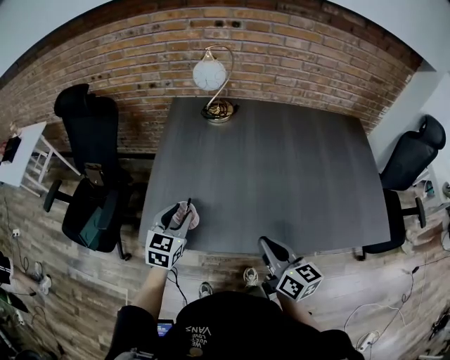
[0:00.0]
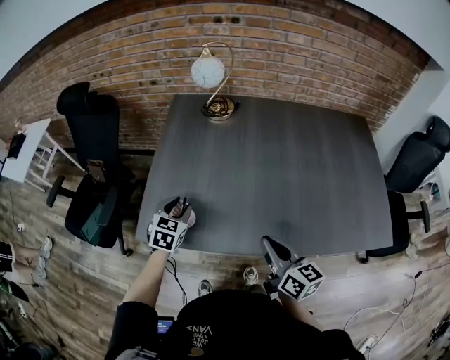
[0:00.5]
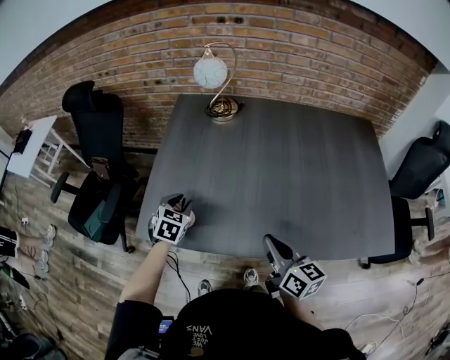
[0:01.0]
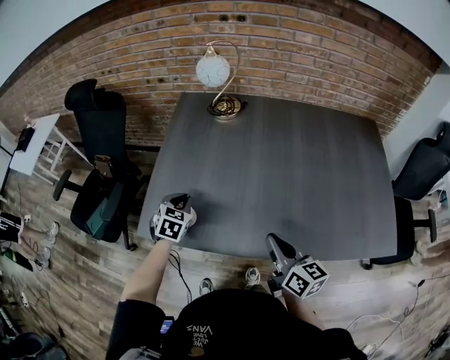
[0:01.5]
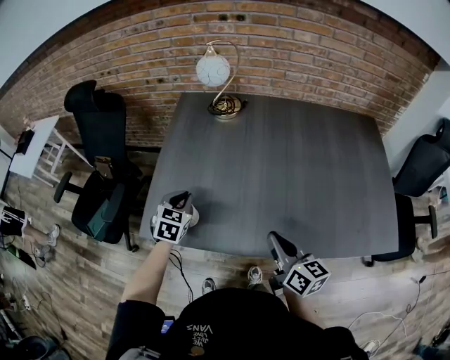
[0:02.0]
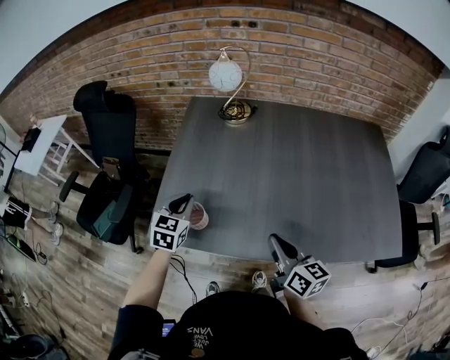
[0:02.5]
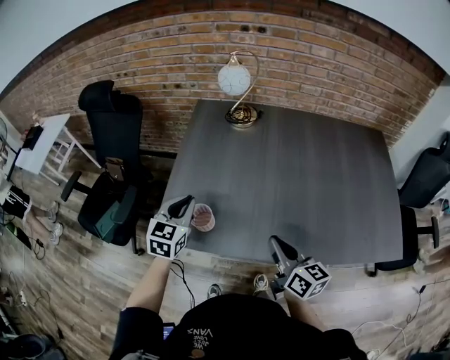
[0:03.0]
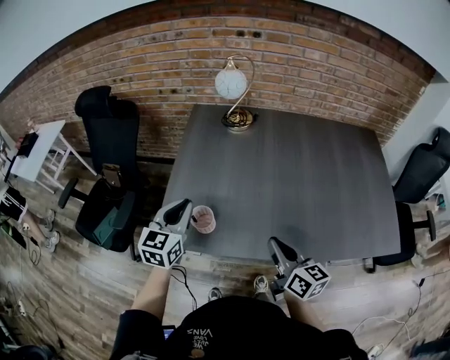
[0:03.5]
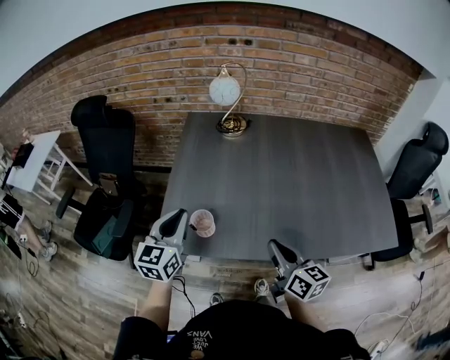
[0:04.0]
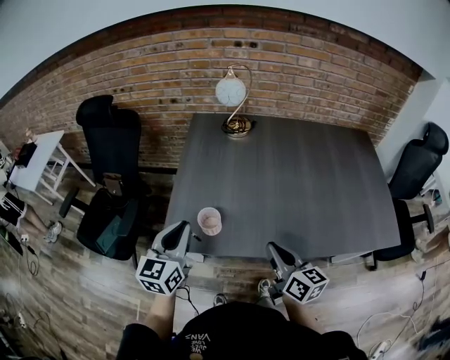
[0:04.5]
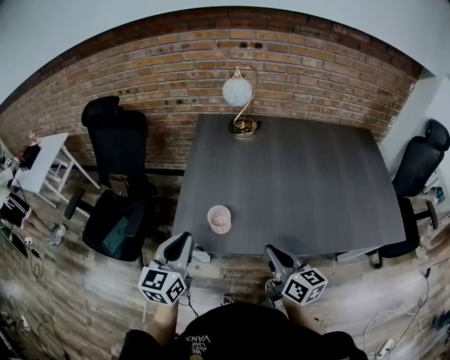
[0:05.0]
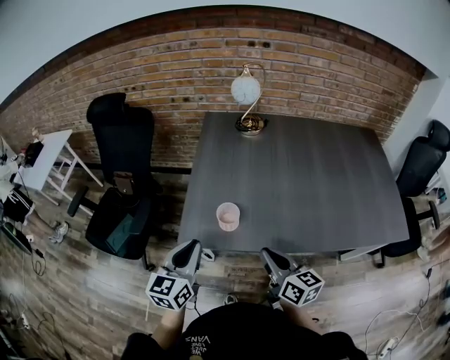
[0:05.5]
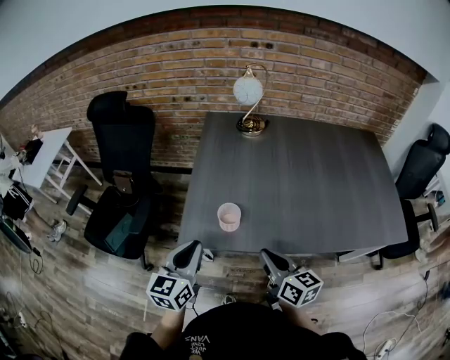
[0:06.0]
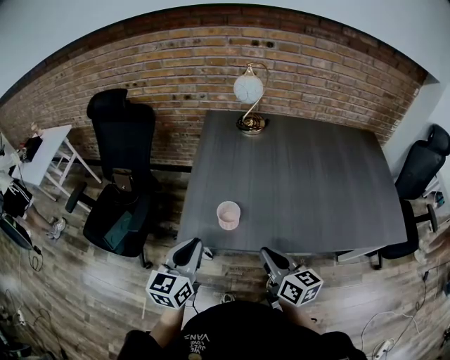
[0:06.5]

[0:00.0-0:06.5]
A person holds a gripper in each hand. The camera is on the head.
0:00.0 to 0:02.0: The left gripper moves forward, approximately 5 cm, and closes up. The right gripper shifts some 5 cm to the right.
0:02.0 to 0:04.5: The left gripper shifts approximately 20 cm upward, backward and to the left, and tips its fingers upward by about 30 degrees. Meanwhile the right gripper goes about 10 cm to the left.
0:04.5 to 0:06.5: The right gripper is displaced to the left by roughly 10 cm. Meanwhile the left gripper moves backward, roughly 5 cm.

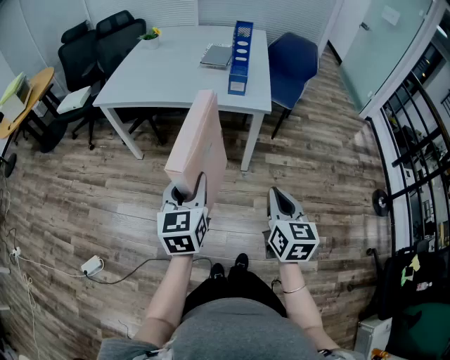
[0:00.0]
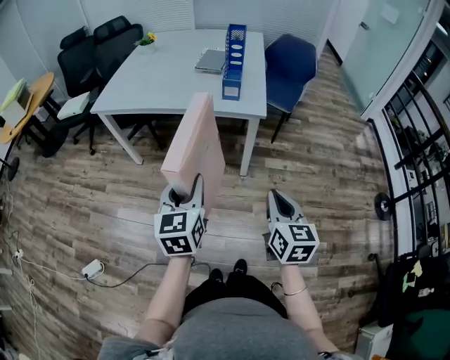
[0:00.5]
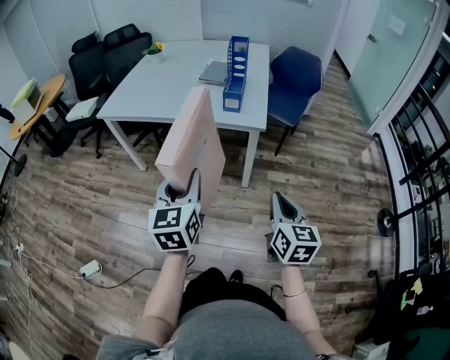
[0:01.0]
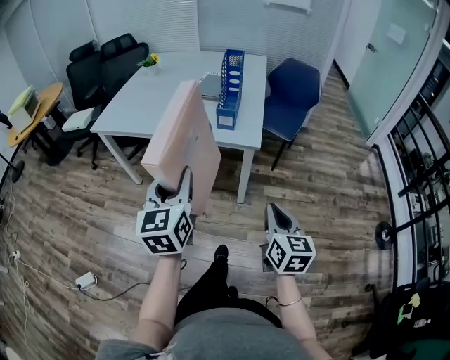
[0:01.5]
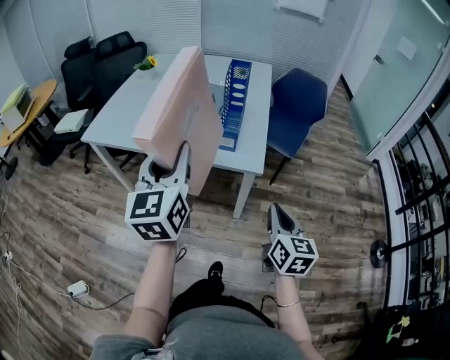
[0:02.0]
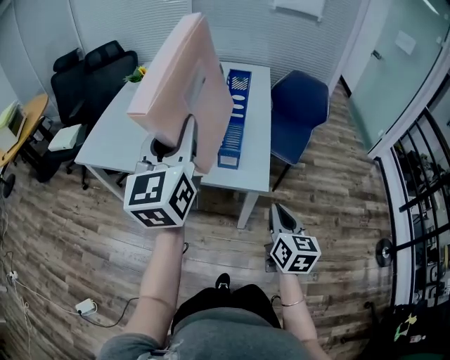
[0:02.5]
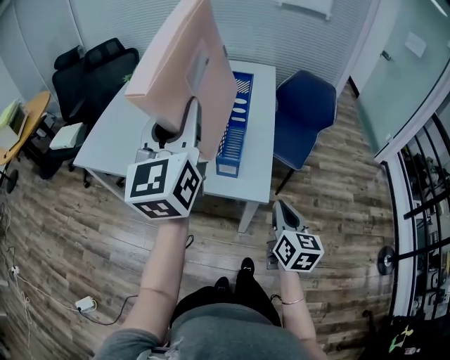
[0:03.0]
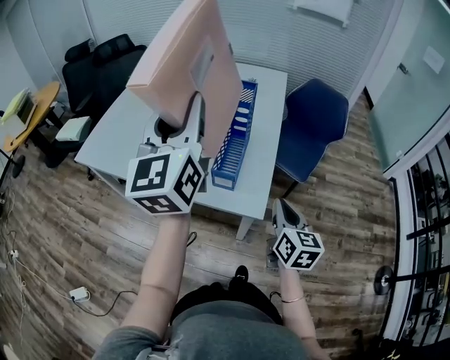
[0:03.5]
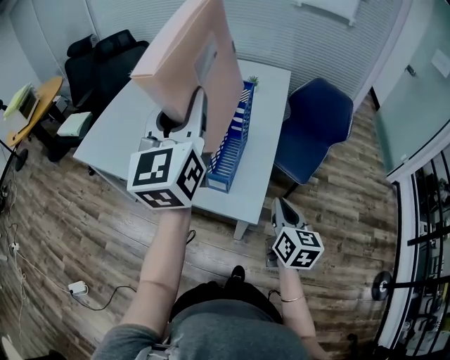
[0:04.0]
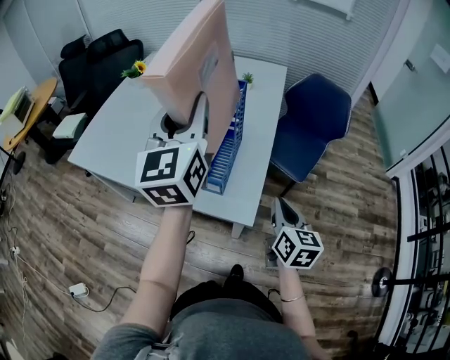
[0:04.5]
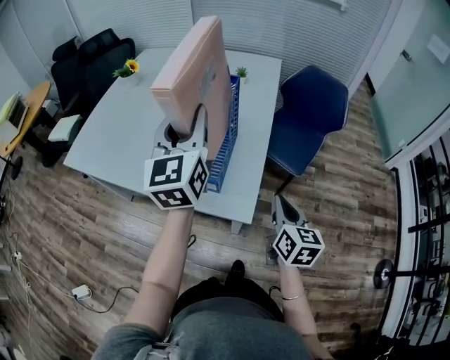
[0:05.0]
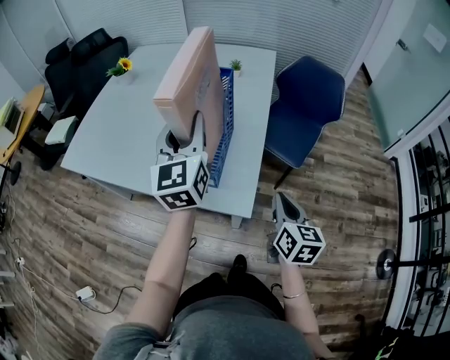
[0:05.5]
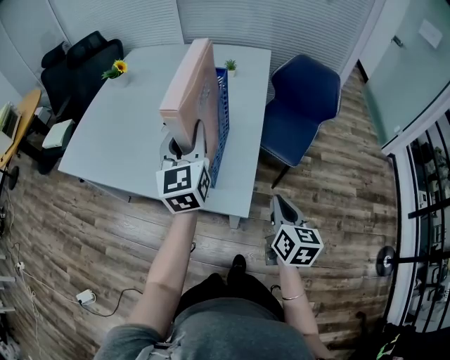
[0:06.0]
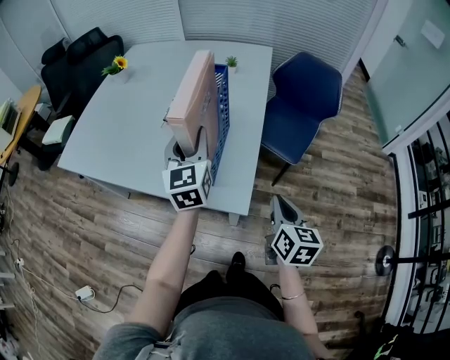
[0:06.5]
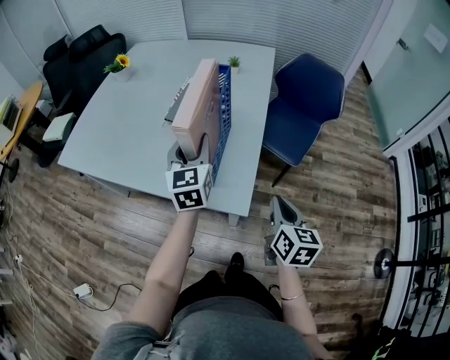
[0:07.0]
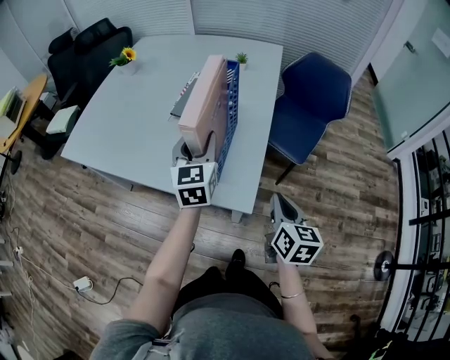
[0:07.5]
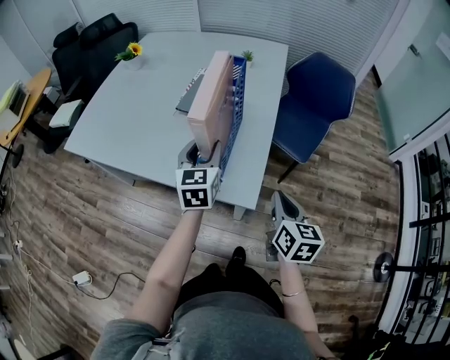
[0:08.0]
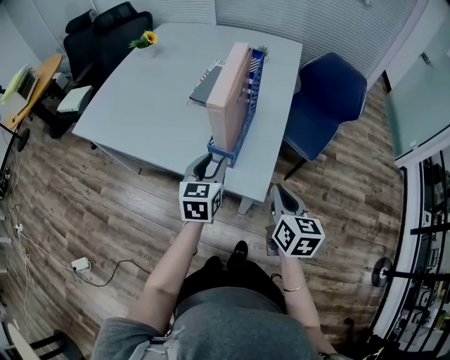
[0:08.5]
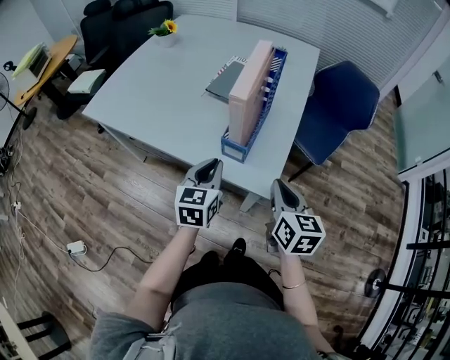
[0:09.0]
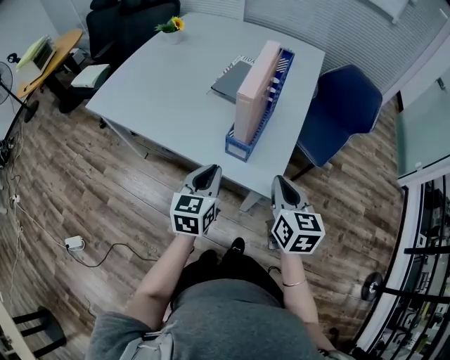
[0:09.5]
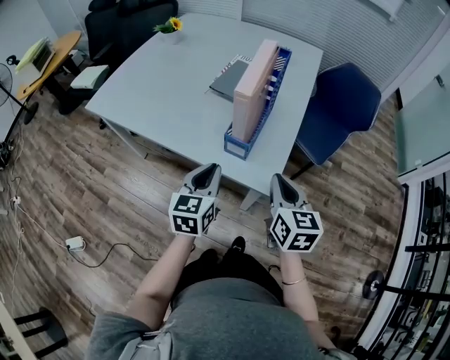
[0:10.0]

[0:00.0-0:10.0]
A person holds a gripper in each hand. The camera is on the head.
0:00.0 to 0:02.0: The right gripper heads forward and to the right, covering some 25 cm. The left gripper heads forward and upward, covering roughly 30 cm.
0:02.0 to 0:04.0: The right gripper shifts approximately 25 cm forward. The left gripper goes approximately 25 cm forward and upward.
0:04.0 to 0:06.0: The right gripper ends up about 5 cm from where it was; the left gripper goes about 15 cm downward.
0:06.0 to 0:08.0: The left gripper is displaced downward by about 10 cm.
0:08.0 to 0:10.0: The right gripper moves to the left, roughly 10 cm. The left gripper heads backward and to the left, covering approximately 15 cm, and closes up.

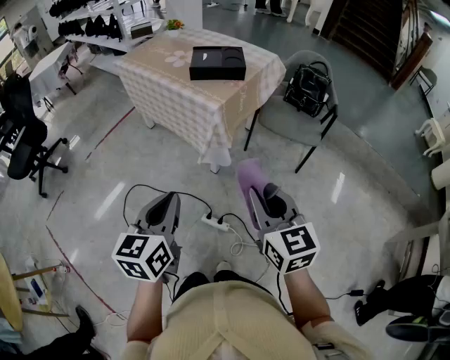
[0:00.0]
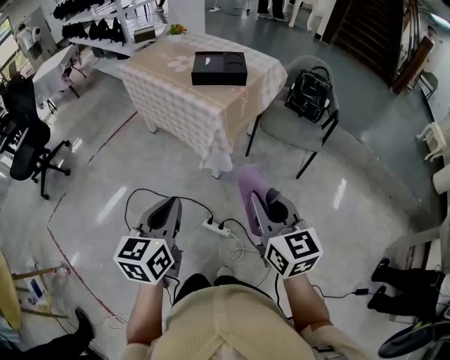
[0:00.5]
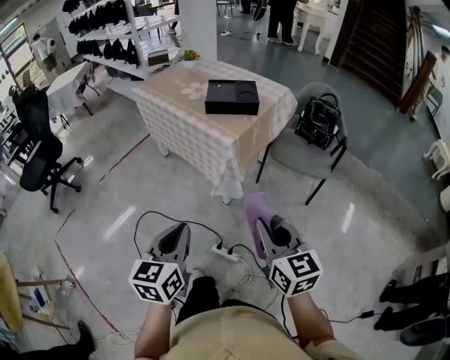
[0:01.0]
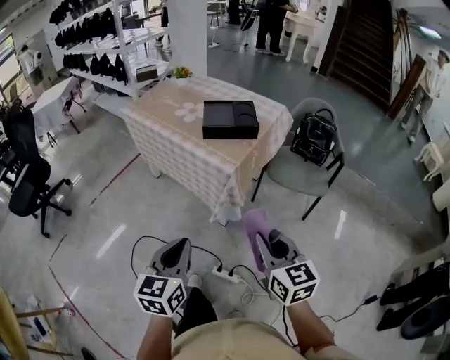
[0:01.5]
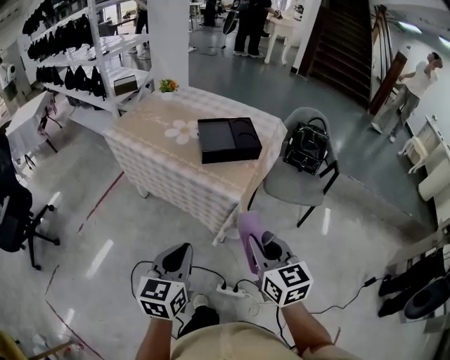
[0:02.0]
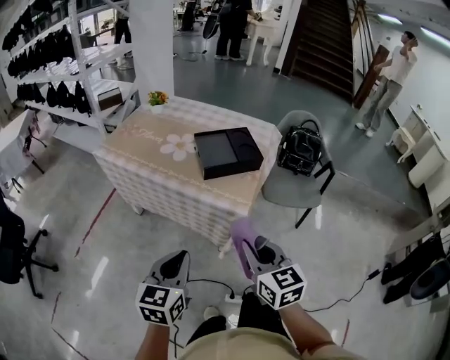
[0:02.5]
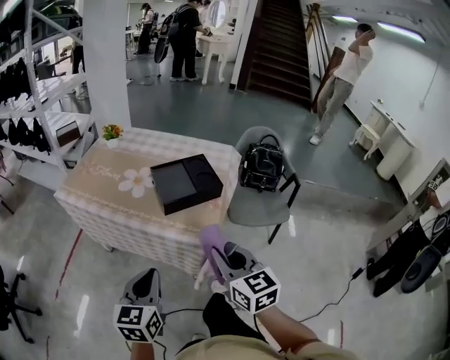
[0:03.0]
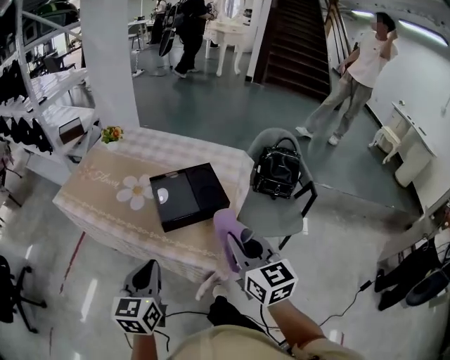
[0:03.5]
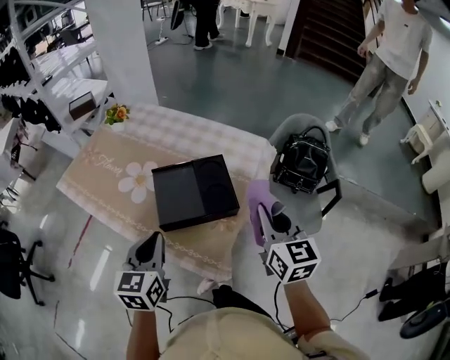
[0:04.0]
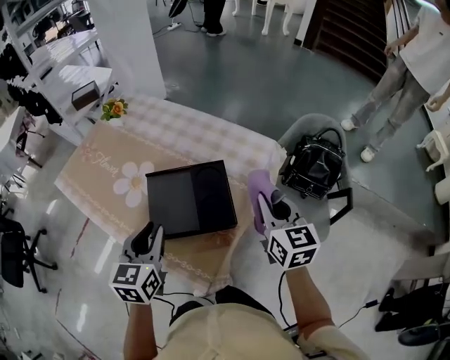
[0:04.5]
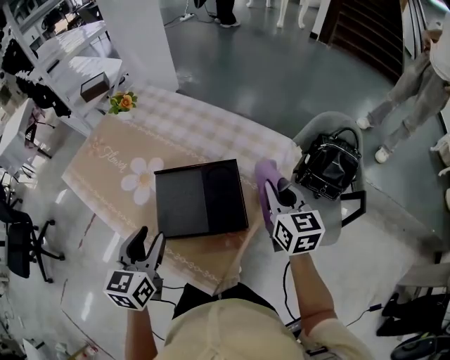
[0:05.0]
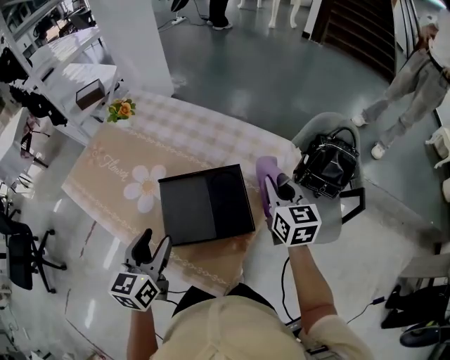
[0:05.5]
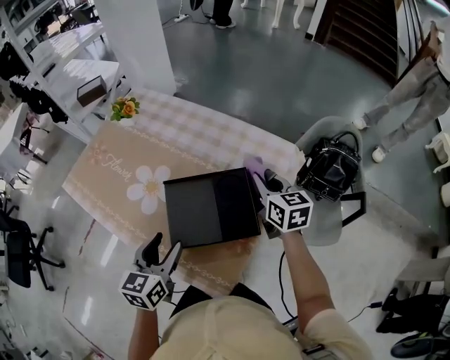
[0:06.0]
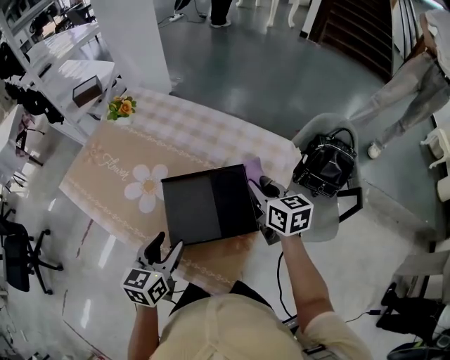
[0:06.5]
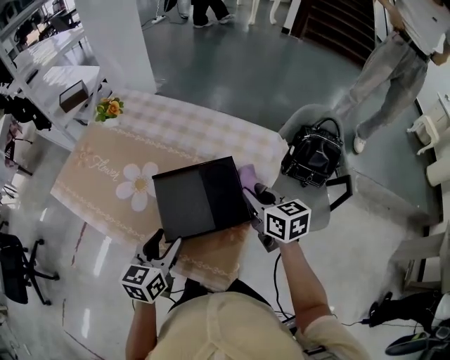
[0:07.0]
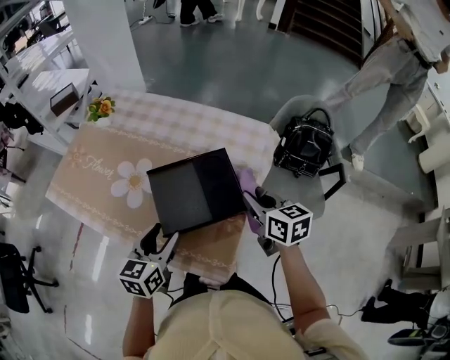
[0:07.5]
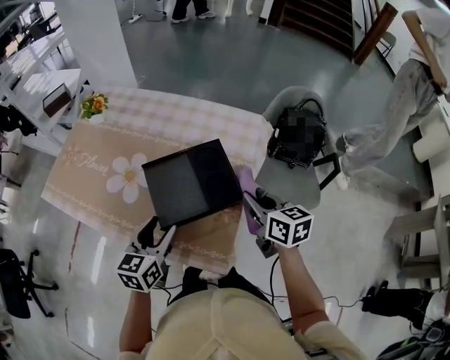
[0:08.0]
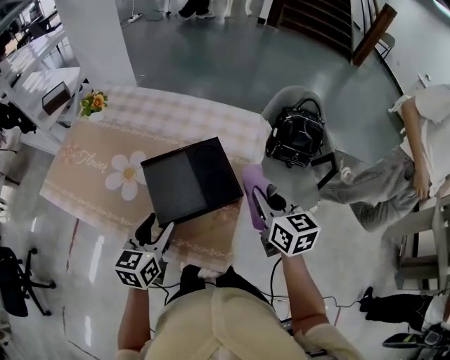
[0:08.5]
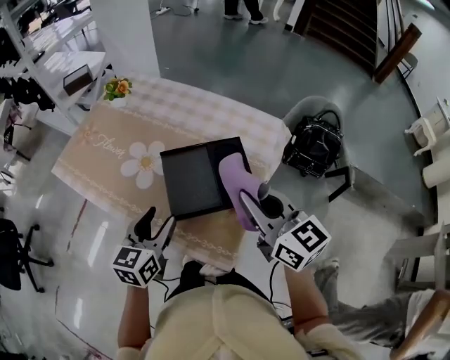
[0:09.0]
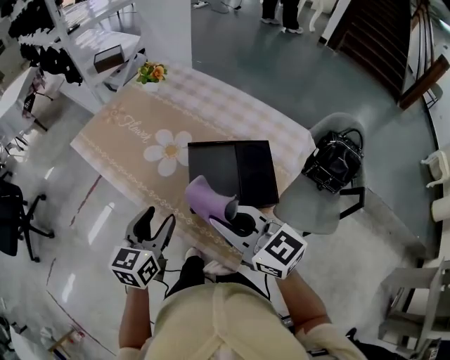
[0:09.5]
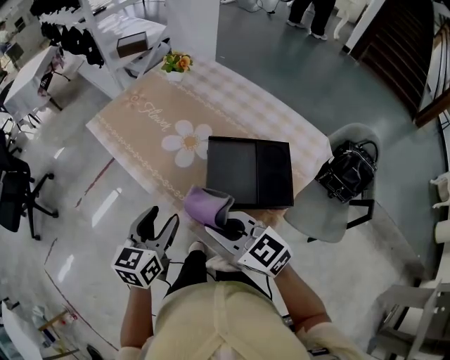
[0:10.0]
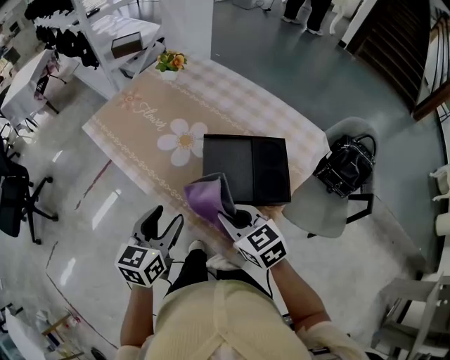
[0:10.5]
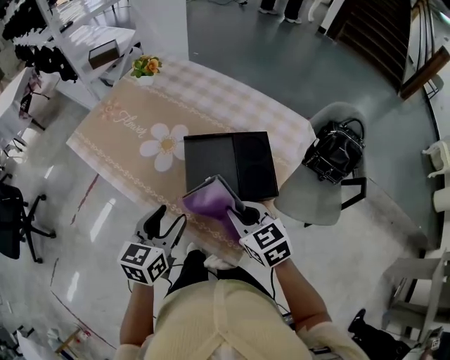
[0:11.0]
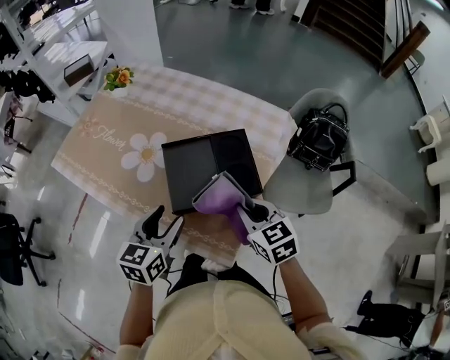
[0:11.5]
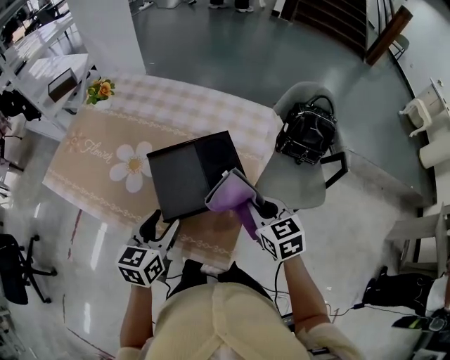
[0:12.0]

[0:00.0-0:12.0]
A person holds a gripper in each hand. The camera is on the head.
0:00.0 to 0:02.0: Both grippers move forward and to the left, some 25 cm.
0:02.0 to 0:04.0: Both grippers move forward, roughly 35 cm.
0:04.0 to 0:06.0: The right gripper shifts some 20 cm forward and downward. The left gripper goes approximately 10 cm forward and downward, and opens.
0:06.0 to 0:08.0: The right gripper is displaced backward by about 15 cm.
0:08.0 to 0:10.0: The left gripper changes place by approximately 15 cm, and turns by some 20 degrees; the right gripper goes upward and returns, some 10 cm each way, and changes its angle by roughly 60 degrees.
0:10.0 to 0:12.0: The right gripper moves about 25 cm, and rotates about 50 degrees, while the left gripper shifts by about 15 cm, and rotates some 20 degrees.
